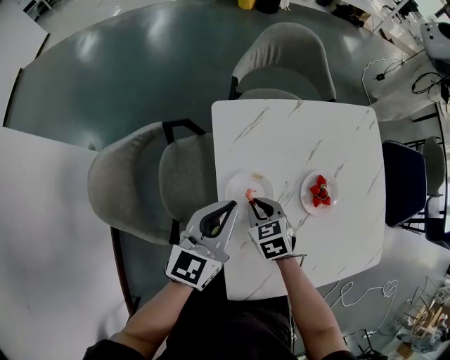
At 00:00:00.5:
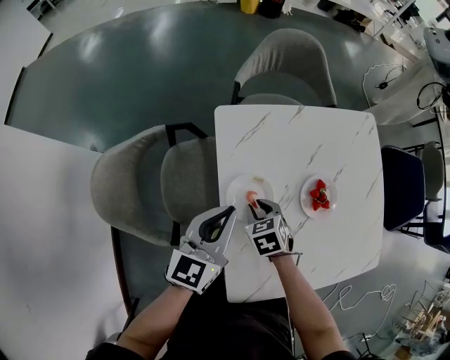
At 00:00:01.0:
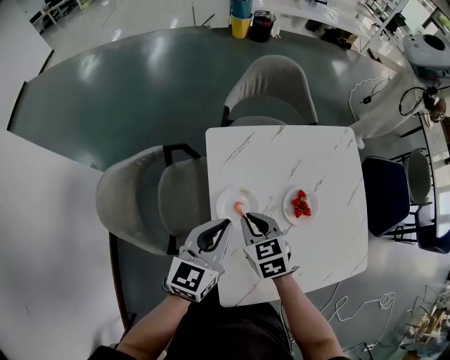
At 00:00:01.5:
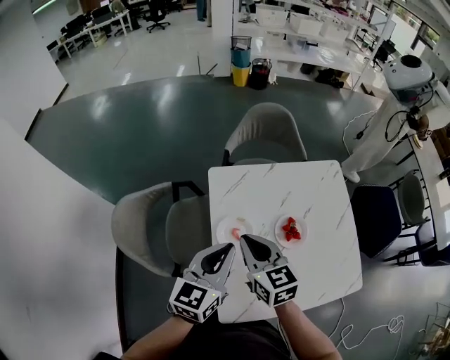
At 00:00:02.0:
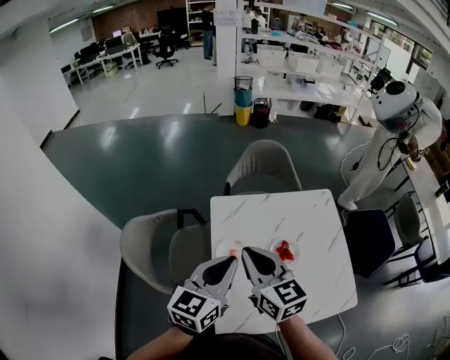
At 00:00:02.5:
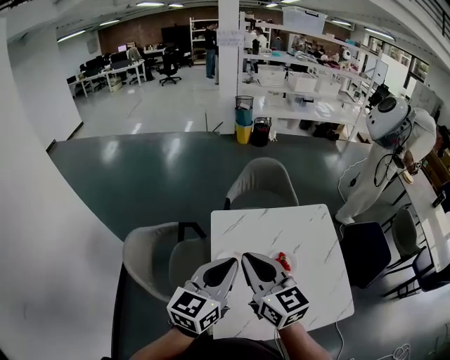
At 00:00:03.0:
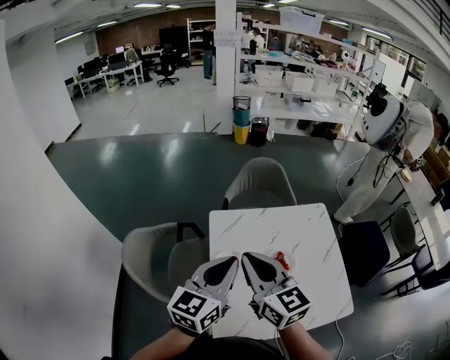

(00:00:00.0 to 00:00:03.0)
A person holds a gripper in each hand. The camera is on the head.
00:00:00.0 - 00:00:01.5: The right gripper is displaced upward by approximately 25 cm, and tips its fingers upward by about 30 degrees. The left gripper shifts about 15 cm upward and backward.
00:00:01.5 - 00:00:03.0: Both grippers move upward, some 15 cm.

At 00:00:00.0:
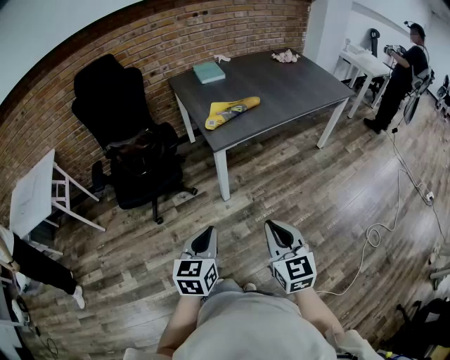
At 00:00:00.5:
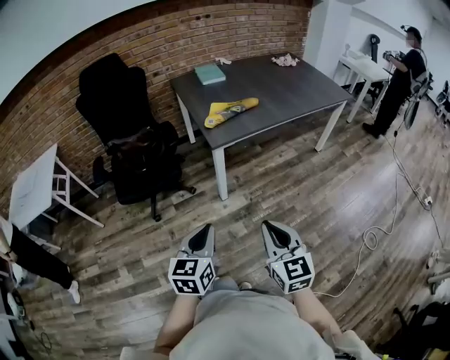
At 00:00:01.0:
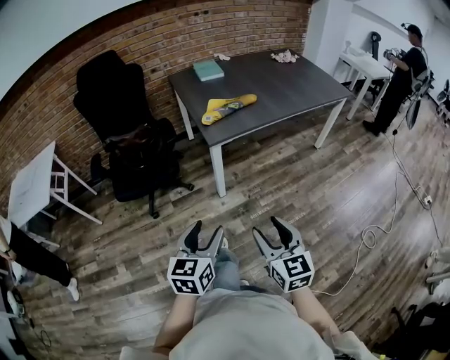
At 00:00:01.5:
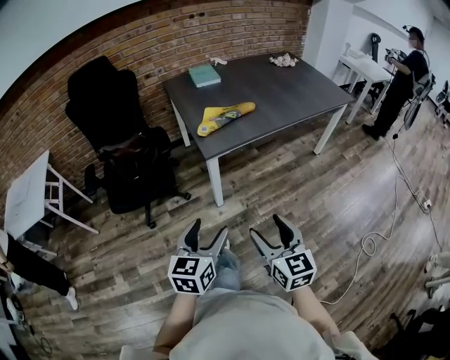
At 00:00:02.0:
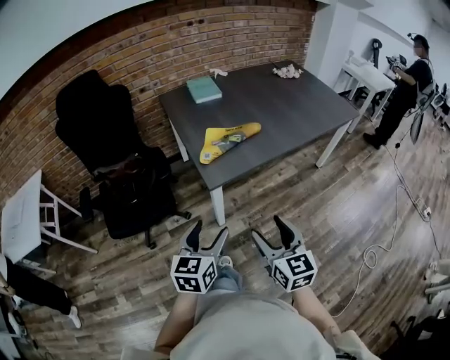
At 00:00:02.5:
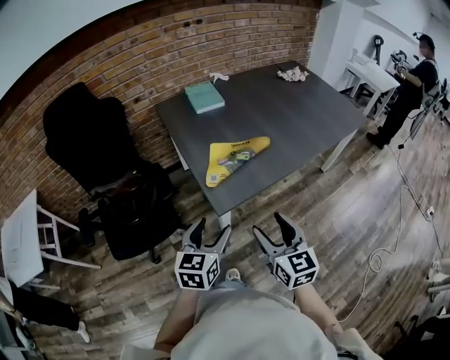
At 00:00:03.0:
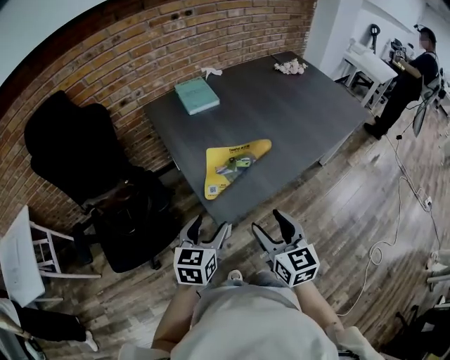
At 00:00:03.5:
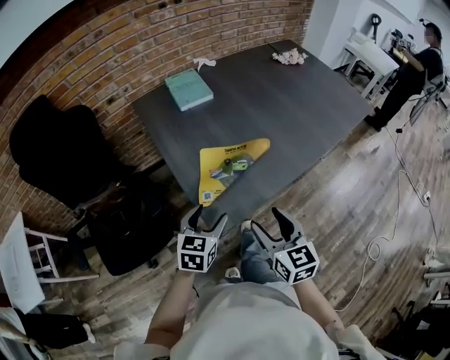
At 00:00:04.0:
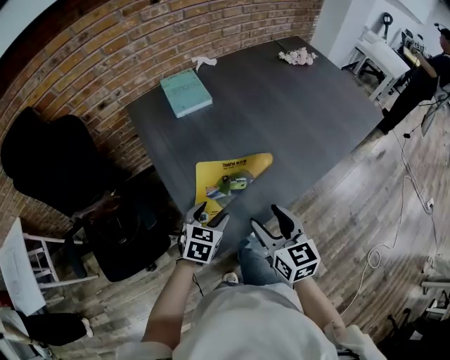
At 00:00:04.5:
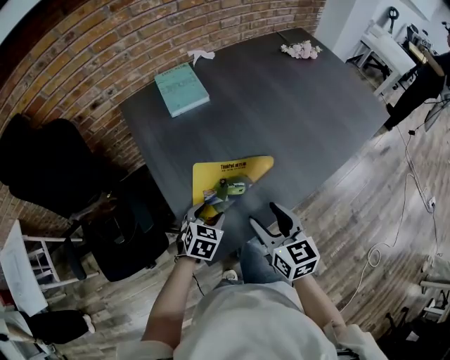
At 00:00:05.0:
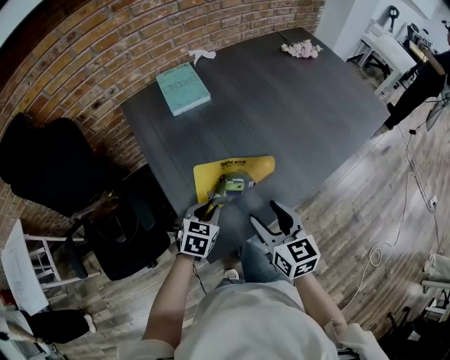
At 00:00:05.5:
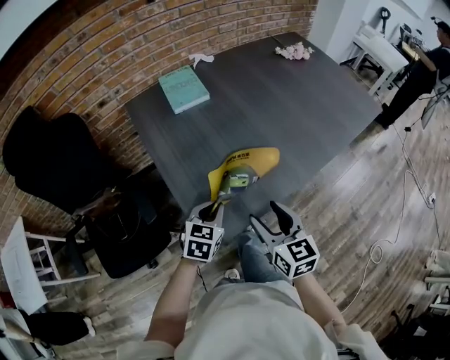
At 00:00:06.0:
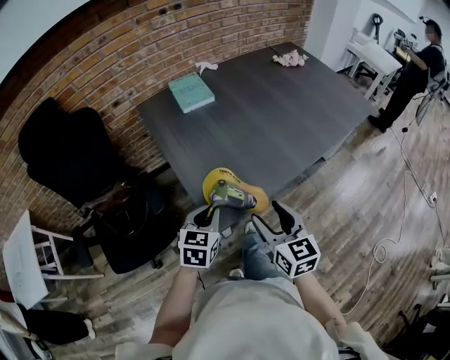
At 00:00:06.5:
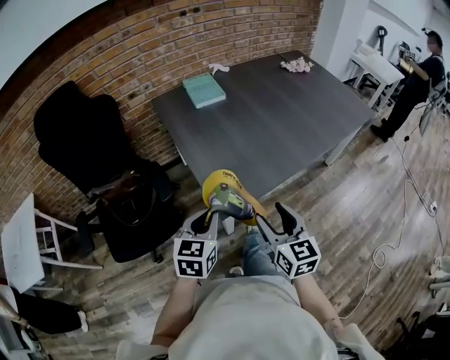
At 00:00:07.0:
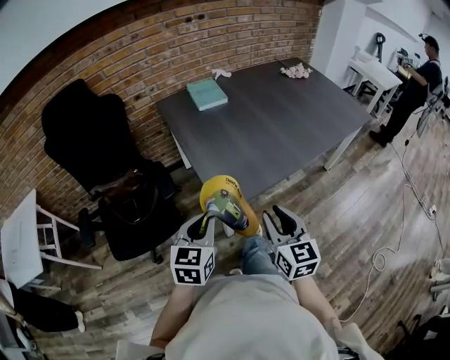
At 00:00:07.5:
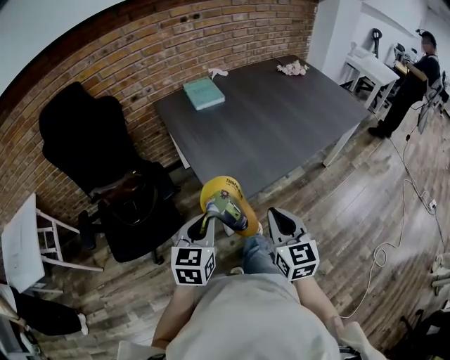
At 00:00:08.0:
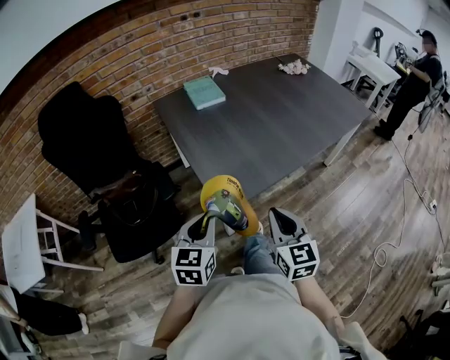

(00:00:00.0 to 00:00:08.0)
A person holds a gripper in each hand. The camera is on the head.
00:00:00.0 - 00:00:02.0: Both grippers move forward, some 20 cm. The right gripper opens up. Meanwhile the left gripper opens its fingers.
00:00:02.0 - 00:00:04.0: The left gripper goes roughly 40 cm forward and downward, and rotates some 30 degrees, while the right gripper goes about 35 cm forward.
00:00:04.0 - 00:00:06.0: The left gripper shifts approximately 10 cm backward and upward, and closes its fingers; the right gripper moves backward, roughly 10 cm.
00:00:06.0 - 00:00:08.0: The right gripper shifts some 10 cm backward, and closes up. The left gripper goes approximately 15 cm backward and upward.

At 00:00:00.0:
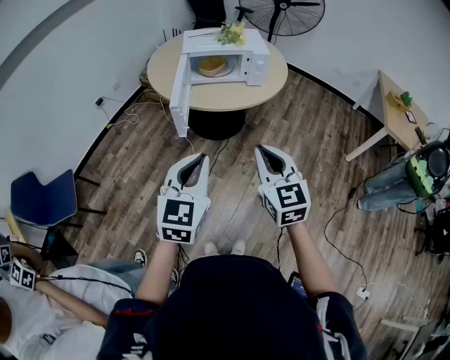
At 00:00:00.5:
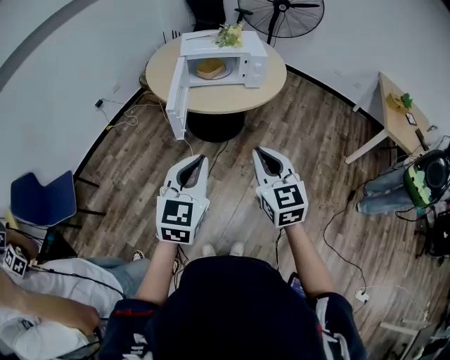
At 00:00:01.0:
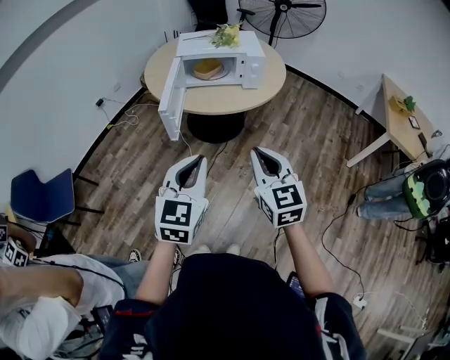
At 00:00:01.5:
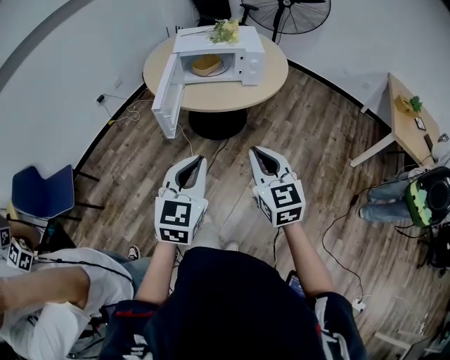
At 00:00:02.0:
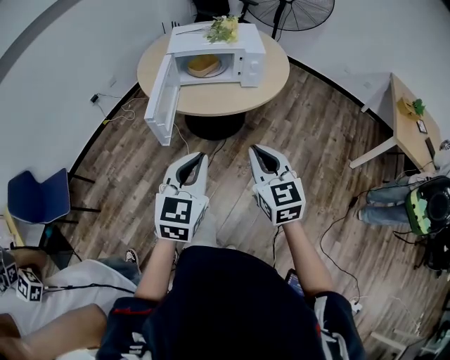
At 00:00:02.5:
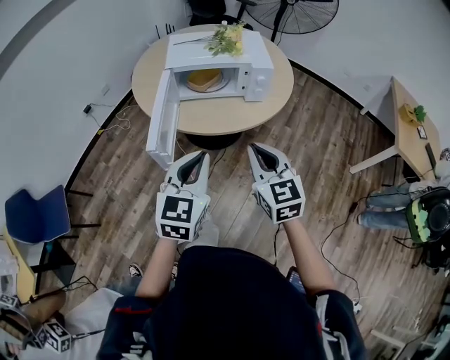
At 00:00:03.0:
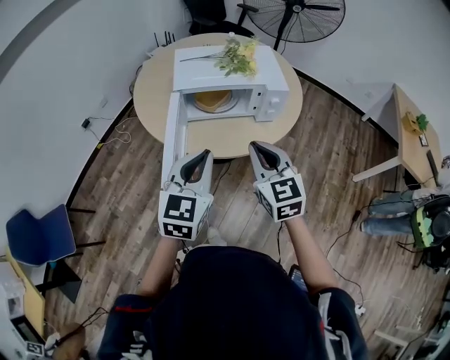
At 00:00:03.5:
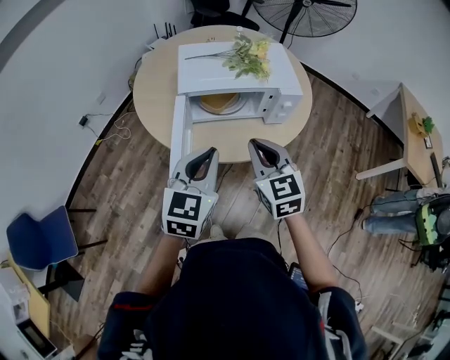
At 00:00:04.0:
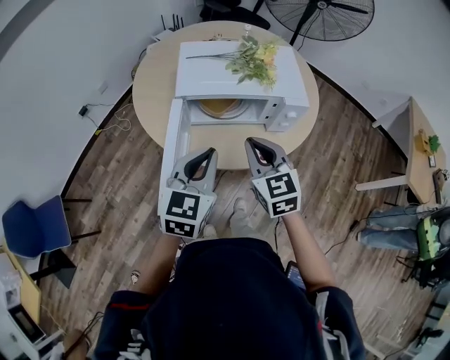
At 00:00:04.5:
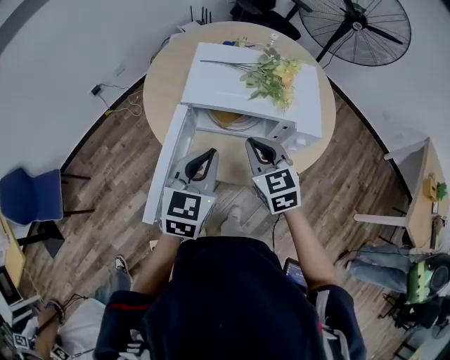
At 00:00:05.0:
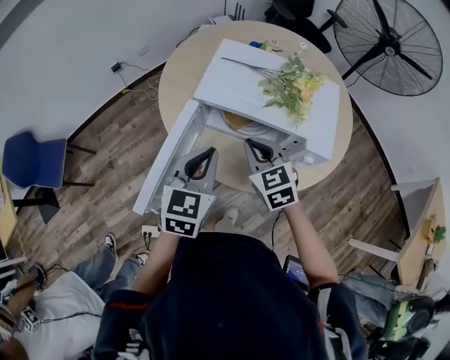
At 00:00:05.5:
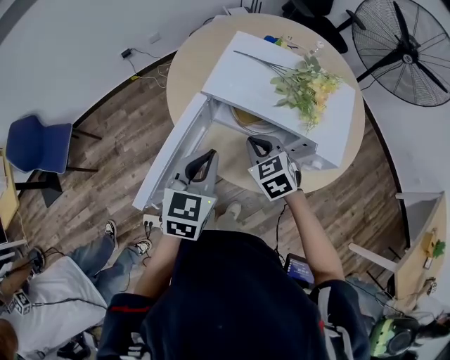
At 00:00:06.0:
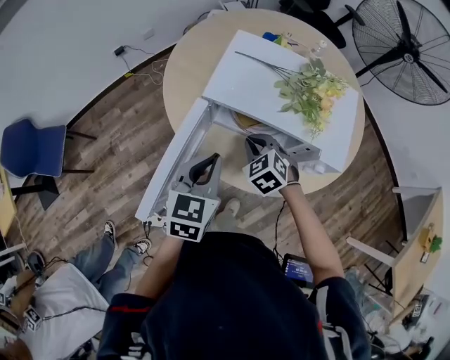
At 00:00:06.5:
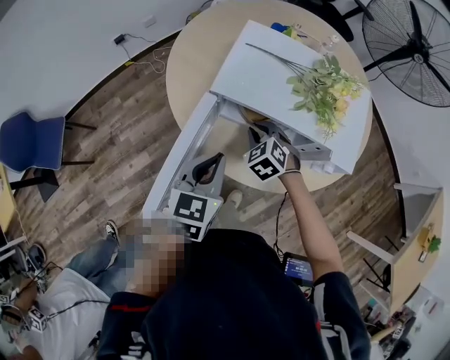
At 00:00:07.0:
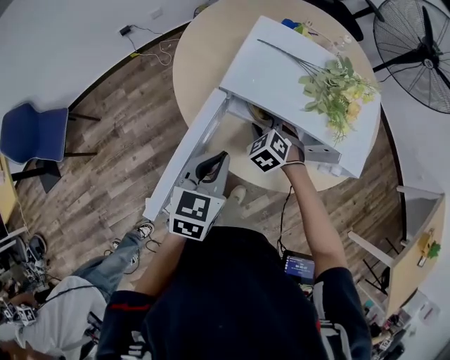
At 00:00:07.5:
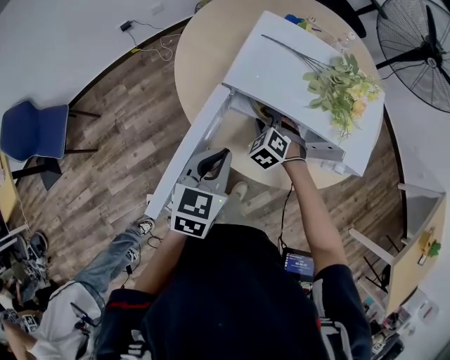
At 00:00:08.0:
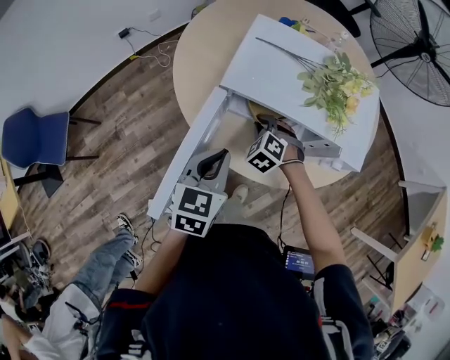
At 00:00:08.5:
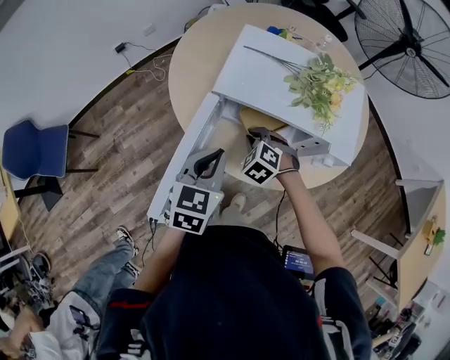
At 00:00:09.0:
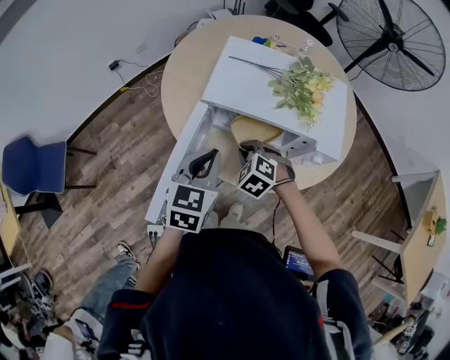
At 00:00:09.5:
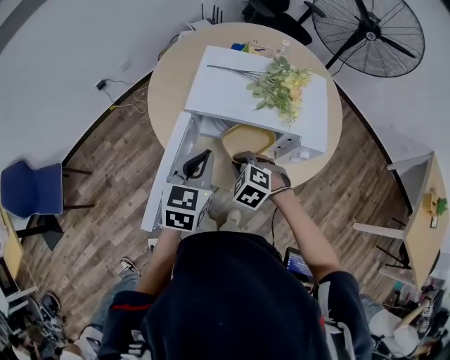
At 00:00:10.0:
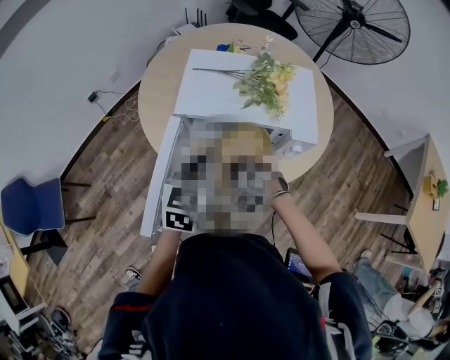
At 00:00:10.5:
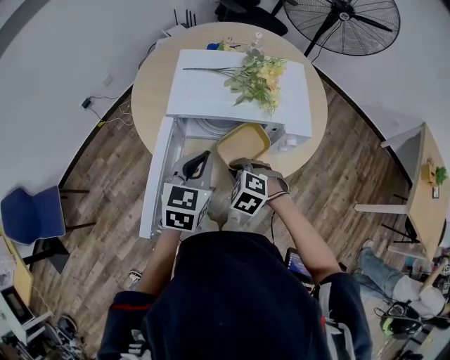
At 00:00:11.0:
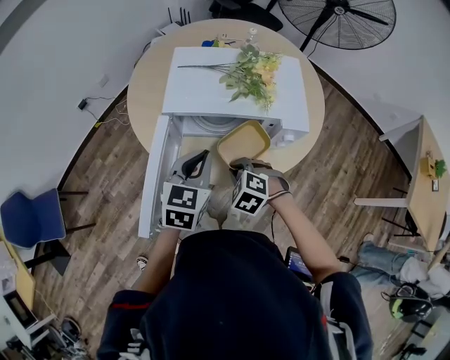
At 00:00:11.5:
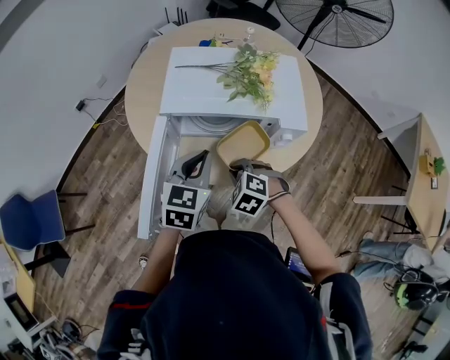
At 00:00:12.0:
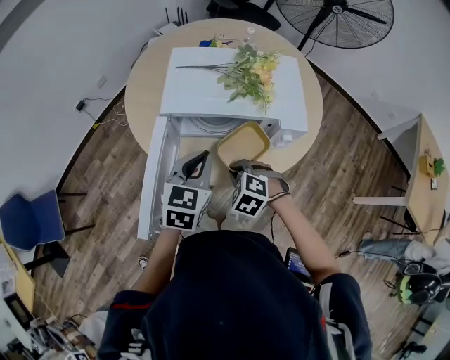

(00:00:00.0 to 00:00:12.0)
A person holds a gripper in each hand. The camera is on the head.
00:00:00.0 - 00:00:02.0: Both grippers move forward and to the right, some 15 cm.
00:00:02.0 - 00:00:04.0: Both grippers travel together forward, some 35 cm.
00:00:04.0 - 00:00:06.0: The left gripper changes place by roughly 10 cm, and rotates some 30 degrees, while the right gripper shifts roughly 15 cm downward, and changes its angle by approximately 50 degrees.
00:00:06.0 - 00:00:08.0: The right gripper goes some 10 cm downward, and opens, then closes once more.
00:00:08.0 - 00:00:10.0: The left gripper heads upward and to the right, covering approximately 10 cm. The right gripper heads backward and upward, covering about 15 cm.
00:00:10.0 - 00:00:12.0: There are only small adjustments of the grippers.

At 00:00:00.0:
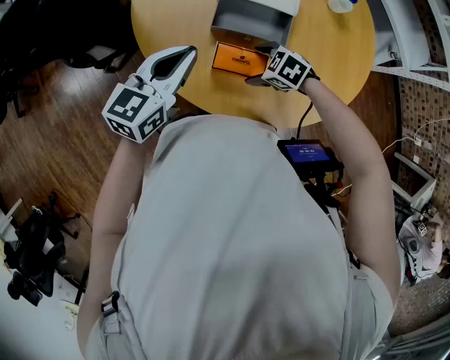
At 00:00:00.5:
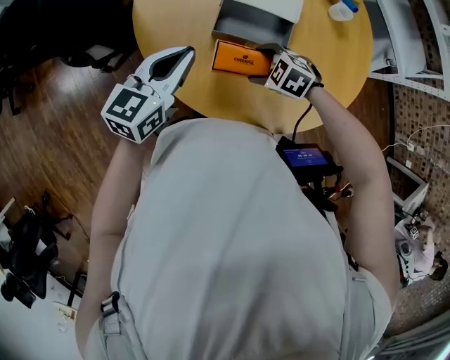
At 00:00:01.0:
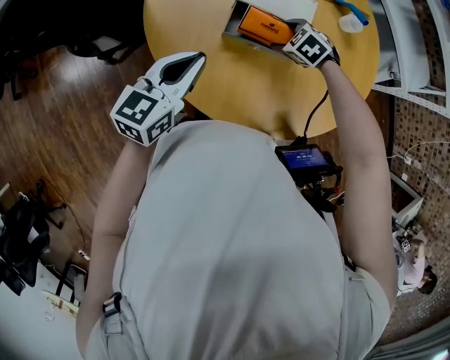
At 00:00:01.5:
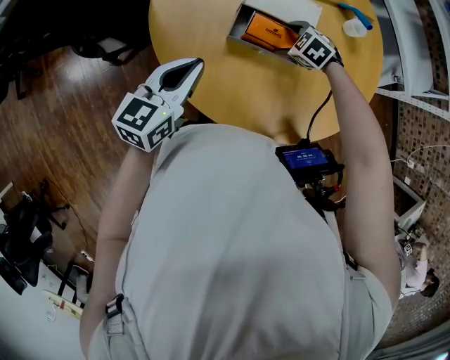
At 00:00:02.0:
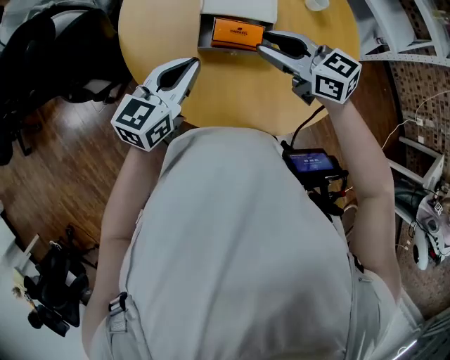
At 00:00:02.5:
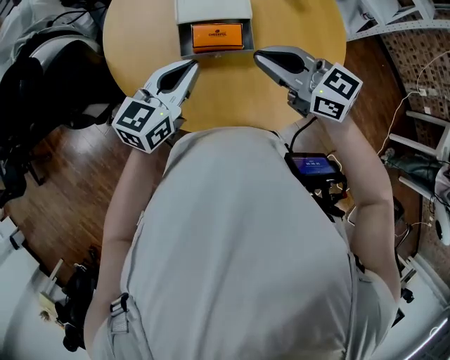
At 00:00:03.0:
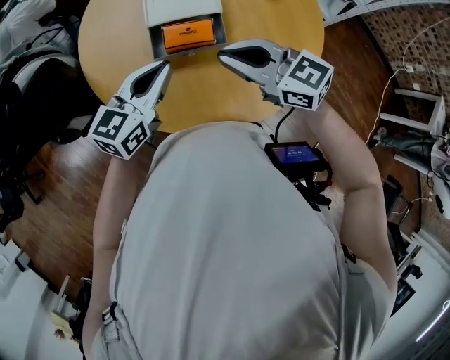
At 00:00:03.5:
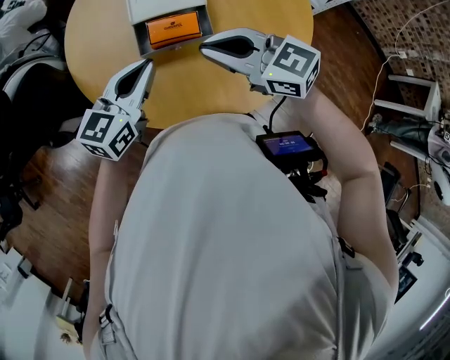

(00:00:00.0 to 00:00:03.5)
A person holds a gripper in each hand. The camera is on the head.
00:00:00.0 - 00:00:02.0: The right gripper heads upward, covering roughly 25 cm, tilts its fingers about 40 degrees upward, and closes.
00:00:02.0 - 00:00:03.5: The left gripper heads to the right, covering approximately 5 cm; the right gripper shifts by some 5 cm, and closes.
